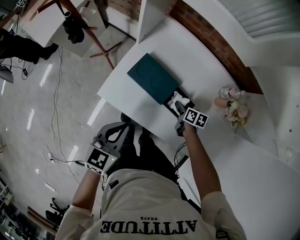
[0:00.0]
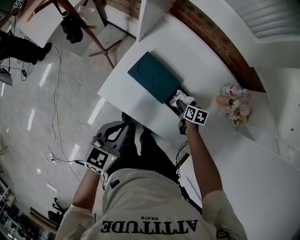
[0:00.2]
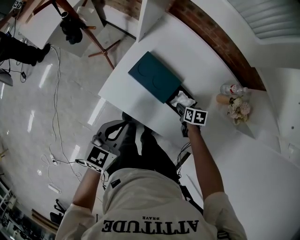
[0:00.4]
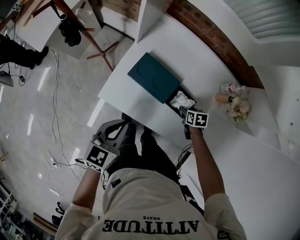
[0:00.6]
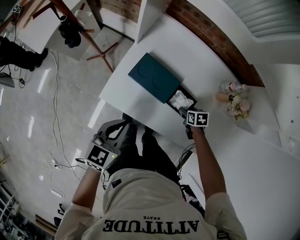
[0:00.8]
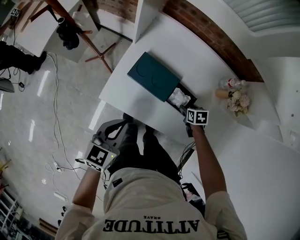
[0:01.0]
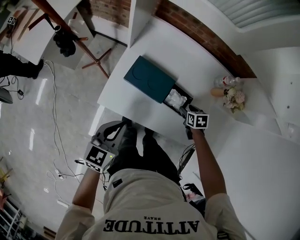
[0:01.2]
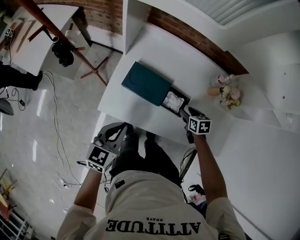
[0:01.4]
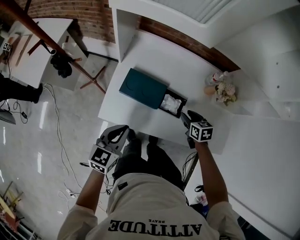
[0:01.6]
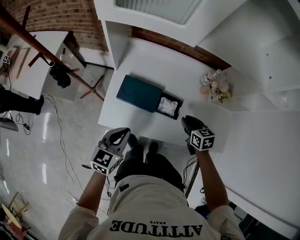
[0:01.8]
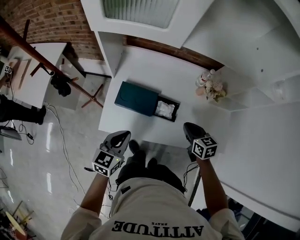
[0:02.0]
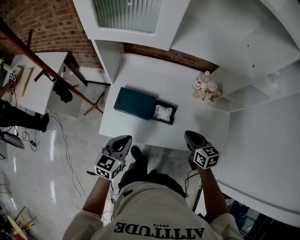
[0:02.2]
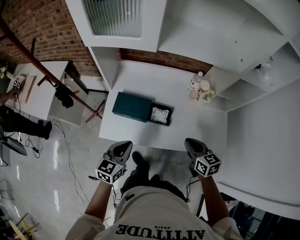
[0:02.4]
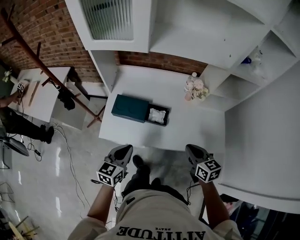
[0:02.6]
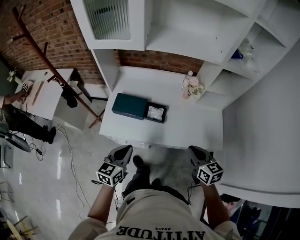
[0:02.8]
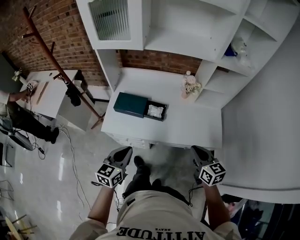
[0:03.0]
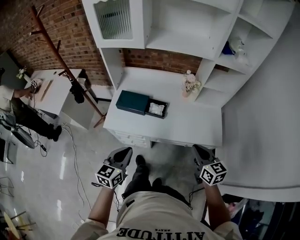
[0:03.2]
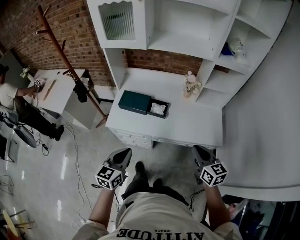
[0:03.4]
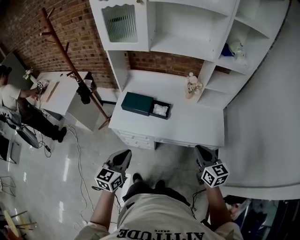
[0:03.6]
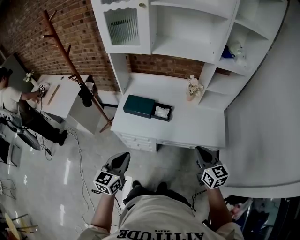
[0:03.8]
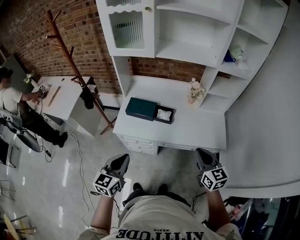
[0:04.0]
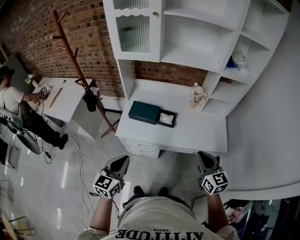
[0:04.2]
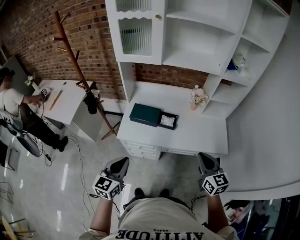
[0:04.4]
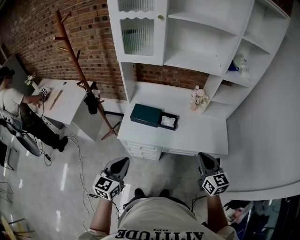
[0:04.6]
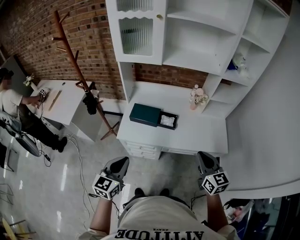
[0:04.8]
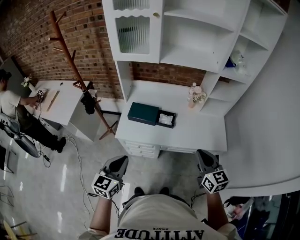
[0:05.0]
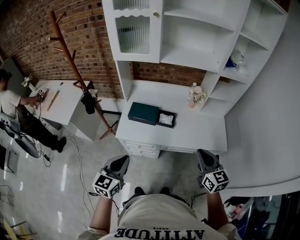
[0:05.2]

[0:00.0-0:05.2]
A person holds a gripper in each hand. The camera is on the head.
0.0 to 1.8 s: The right gripper travels upward and backward by approximately 20 cm, rotates some 20 degrees, and opens and closes again.
1.8 to 3.4 s: The left gripper is displaced backward and to the right by some 25 cm; the right gripper moves backward, upward and to the right, some 35 cm, and rotates about 30 degrees.
3.4 to 5.2 s: The grippers both shift to the left and upward by roughly 10 cm.

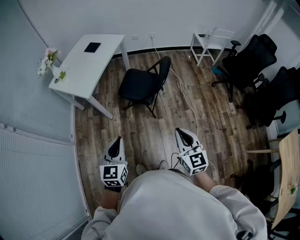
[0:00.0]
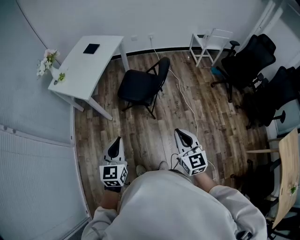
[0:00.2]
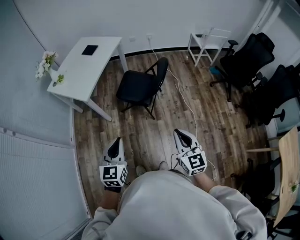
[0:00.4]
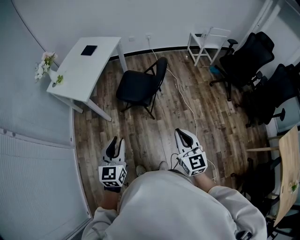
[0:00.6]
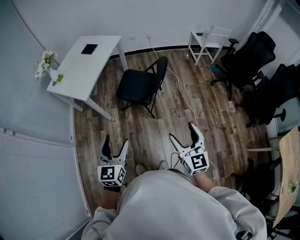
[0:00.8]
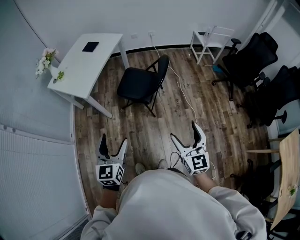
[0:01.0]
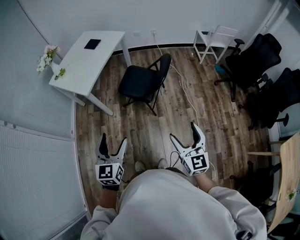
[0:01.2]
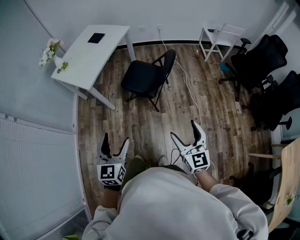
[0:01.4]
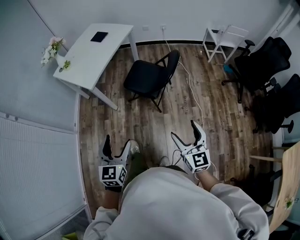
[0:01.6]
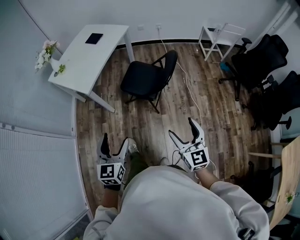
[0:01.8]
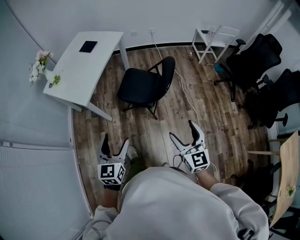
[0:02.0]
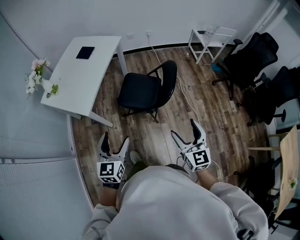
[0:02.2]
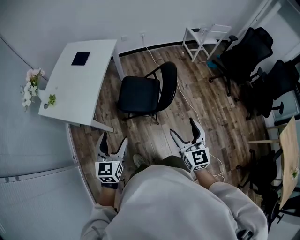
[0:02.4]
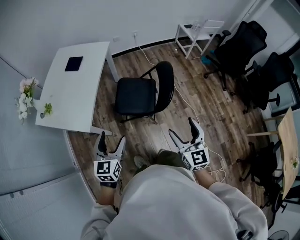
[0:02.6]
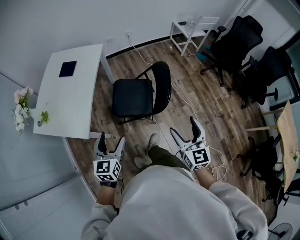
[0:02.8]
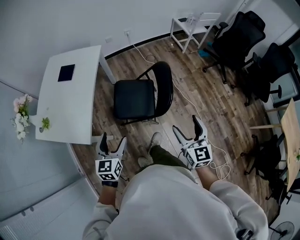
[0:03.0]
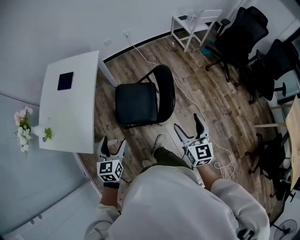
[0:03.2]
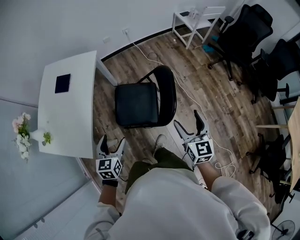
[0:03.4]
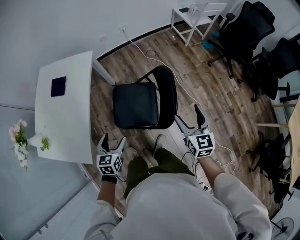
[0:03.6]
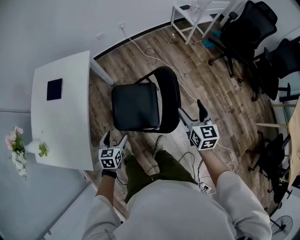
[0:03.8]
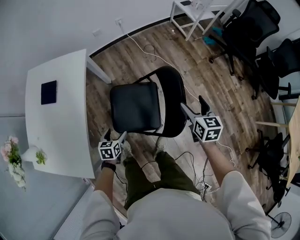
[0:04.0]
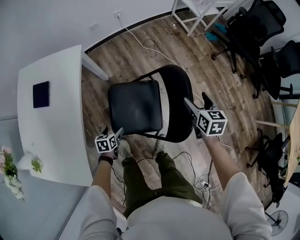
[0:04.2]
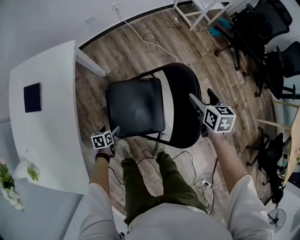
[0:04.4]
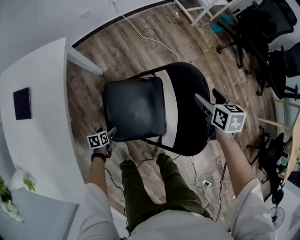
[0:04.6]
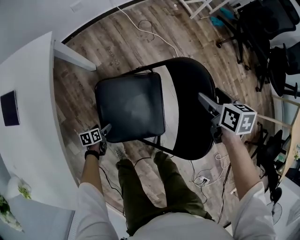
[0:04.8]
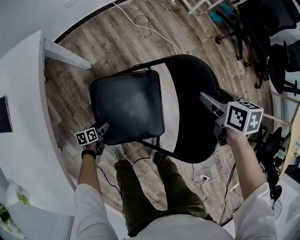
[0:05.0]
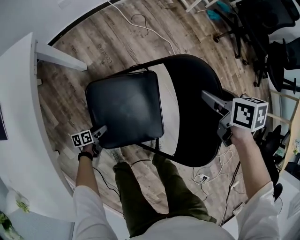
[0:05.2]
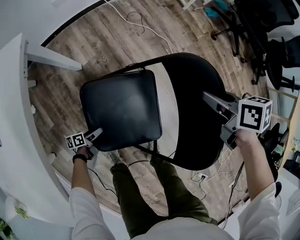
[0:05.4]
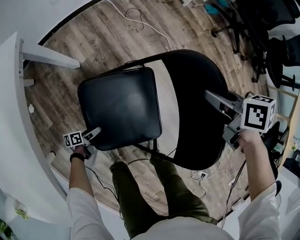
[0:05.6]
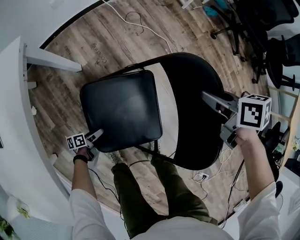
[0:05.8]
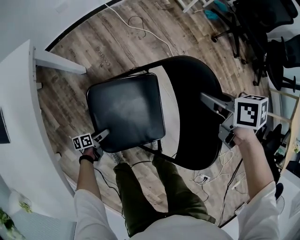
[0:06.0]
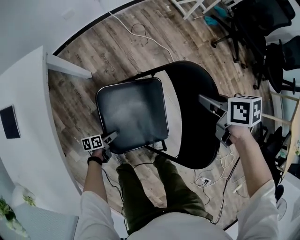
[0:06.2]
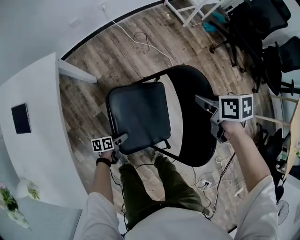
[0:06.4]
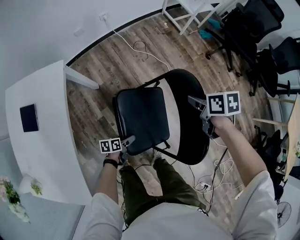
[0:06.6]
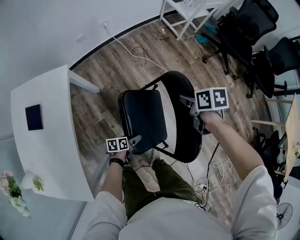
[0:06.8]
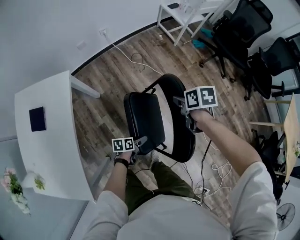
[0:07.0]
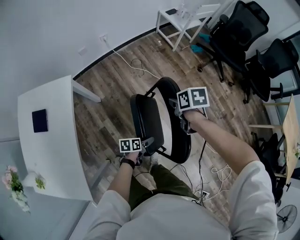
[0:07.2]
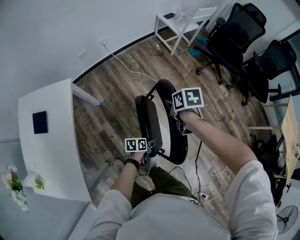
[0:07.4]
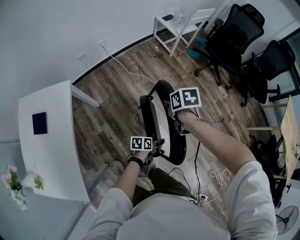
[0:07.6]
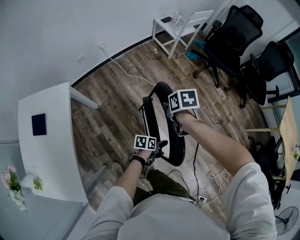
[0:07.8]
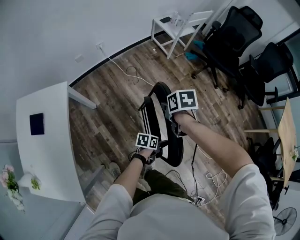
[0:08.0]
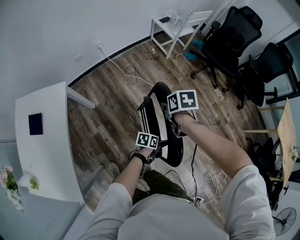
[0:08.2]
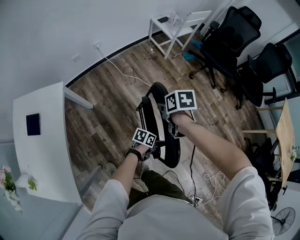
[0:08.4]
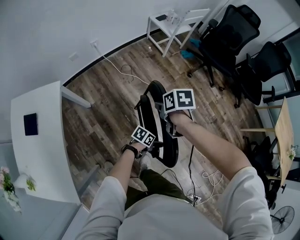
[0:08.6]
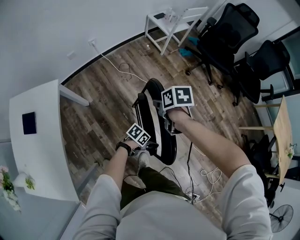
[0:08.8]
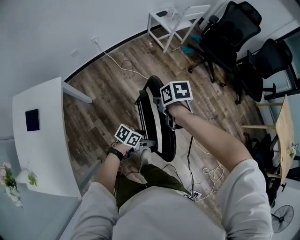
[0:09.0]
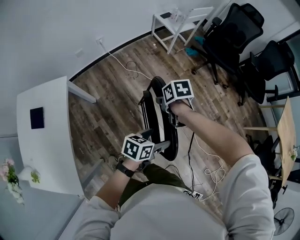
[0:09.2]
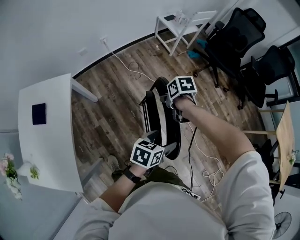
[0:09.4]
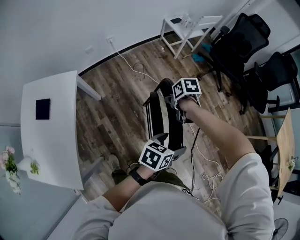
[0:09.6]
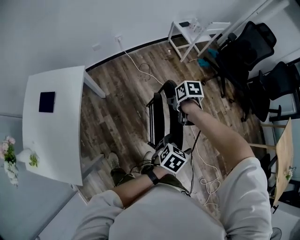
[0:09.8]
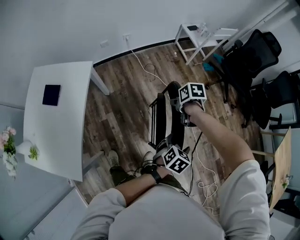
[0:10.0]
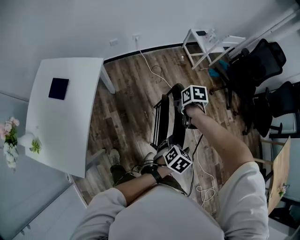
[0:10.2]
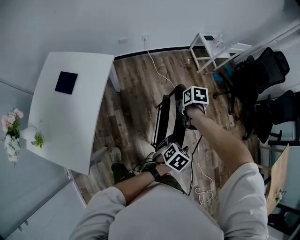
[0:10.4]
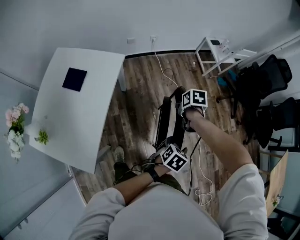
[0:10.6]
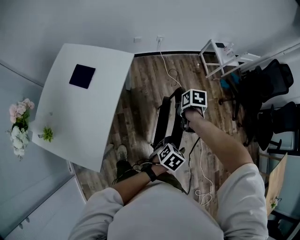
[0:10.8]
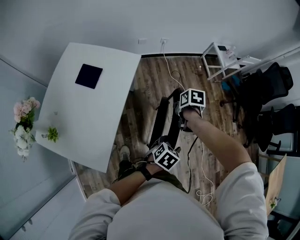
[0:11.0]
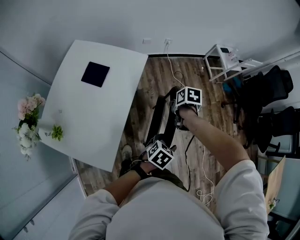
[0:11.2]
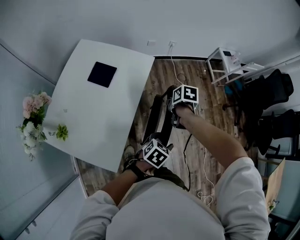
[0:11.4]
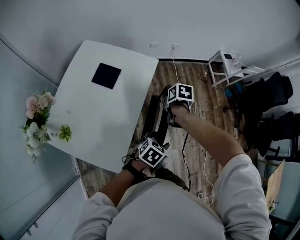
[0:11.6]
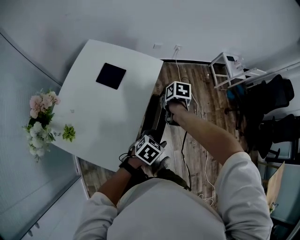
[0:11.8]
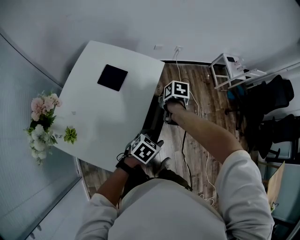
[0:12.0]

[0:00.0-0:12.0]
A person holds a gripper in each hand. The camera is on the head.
0.0 to 1.6 s: The left gripper opens its fingers, while the right gripper ends up approximately 5 cm from where it was, and opens.
1.6 to 3.0 s: Both grippers travel together forward, approximately 30 cm. The left gripper swivels roughly 20 degrees. The right gripper turns by roughly 30 degrees.
3.0 to 4.4 s: The left gripper is displaced downward and forward by about 60 cm, and tilts its fingers approximately 40 degrees downward. The right gripper moves forward and downward, roughly 50 cm, and tilts its fingers some 30 degrees downward.
4.4 to 6.0 s: The left gripper shifts about 15 cm downward, and rotates some 30 degrees. Meanwhile the right gripper is displaced downward by roughly 5 cm, turns by roughly 30 degrees, and closes its fingers.
6.0 to 7.6 s: The right gripper heads upward, covering approximately 15 cm, while the left gripper travels to the right and upward by approximately 50 cm, and turns by roughly 20 degrees.
7.6 to 9.0 s: The left gripper heads upward, covering some 5 cm, and swivels roughly 30 degrees.
9.0 to 10.4 s: The left gripper is displaced upward by roughly 15 cm, and rotates some 40 degrees, while the right gripper ends up approximately 15 cm from where it was.
10.4 to 12.0 s: The two grippers travel together, to the left, roughly 40 cm.

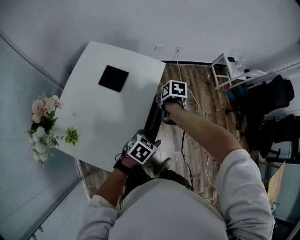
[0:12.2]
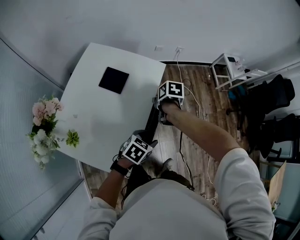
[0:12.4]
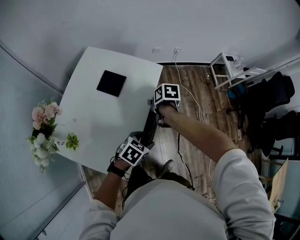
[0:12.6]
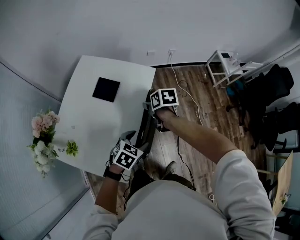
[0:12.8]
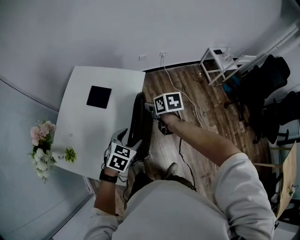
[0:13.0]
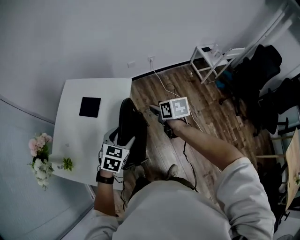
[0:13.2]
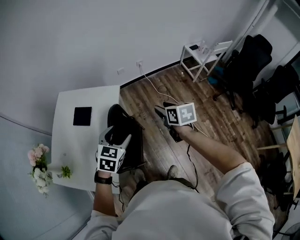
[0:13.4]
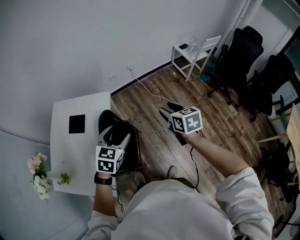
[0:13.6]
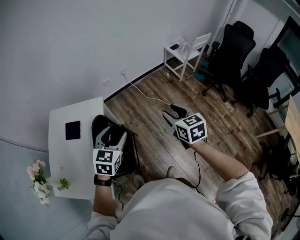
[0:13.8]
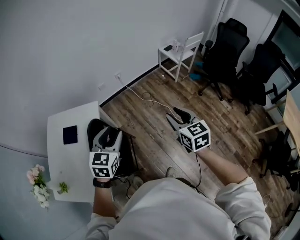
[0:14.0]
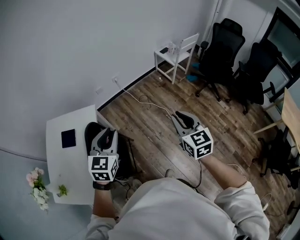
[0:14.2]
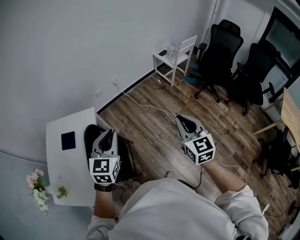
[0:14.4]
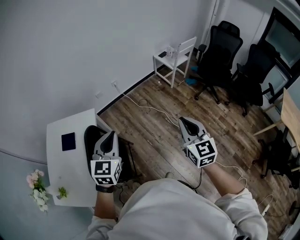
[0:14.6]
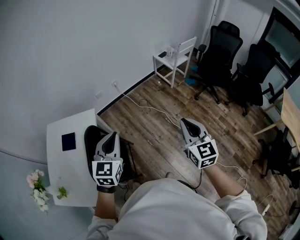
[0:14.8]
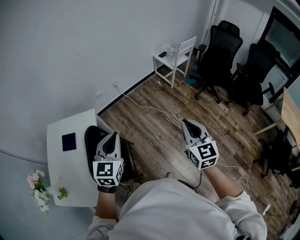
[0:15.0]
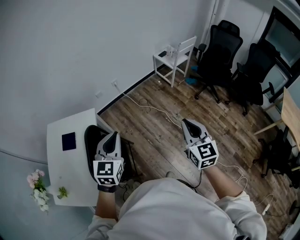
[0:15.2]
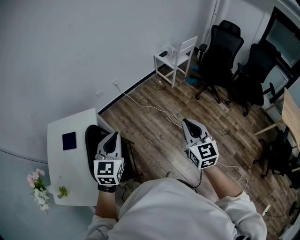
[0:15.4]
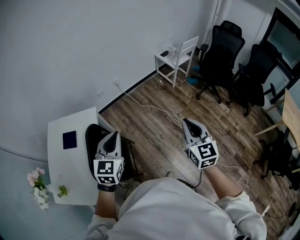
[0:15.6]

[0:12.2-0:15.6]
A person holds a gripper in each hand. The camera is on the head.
12.2 to 13.8 s: The left gripper shifts roughly 25 cm upward and to the right, and rotates about 30 degrees; the right gripper moves to the right and upward, some 50 cm, and angles its fingers upward, by roughly 40 degrees.
13.8 to 15.6 s: The left gripper travels to the right and upward by some 10 cm, and closes up. Meanwhile the right gripper shifts roughly 15 cm to the right, backward and upward, rotates roughly 30 degrees, and closes up.

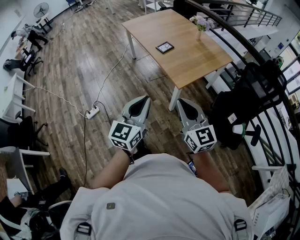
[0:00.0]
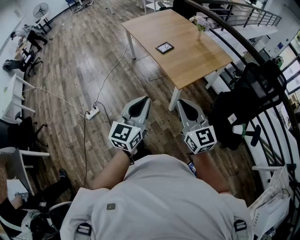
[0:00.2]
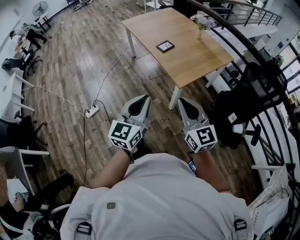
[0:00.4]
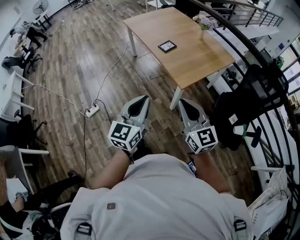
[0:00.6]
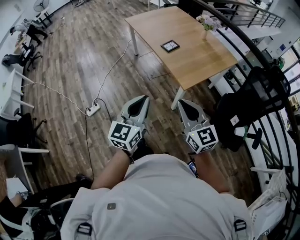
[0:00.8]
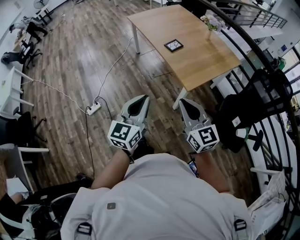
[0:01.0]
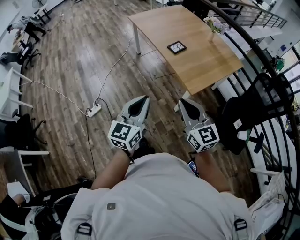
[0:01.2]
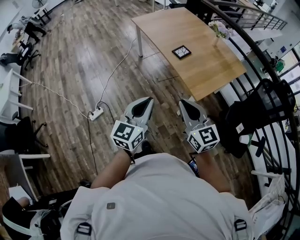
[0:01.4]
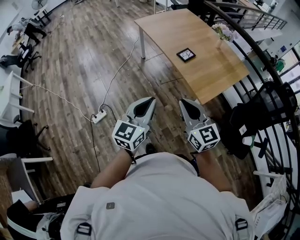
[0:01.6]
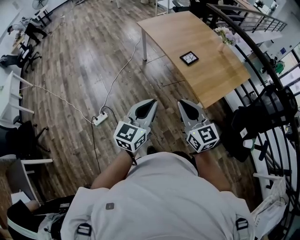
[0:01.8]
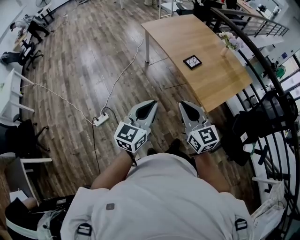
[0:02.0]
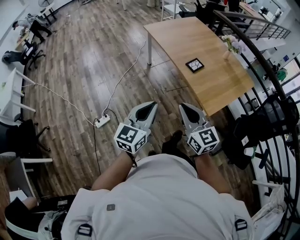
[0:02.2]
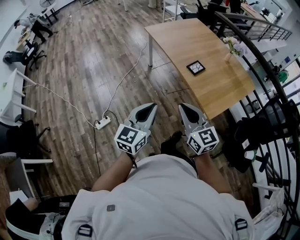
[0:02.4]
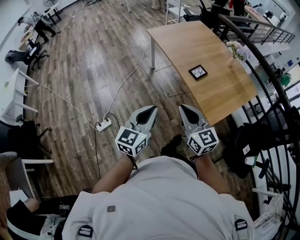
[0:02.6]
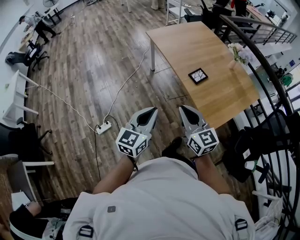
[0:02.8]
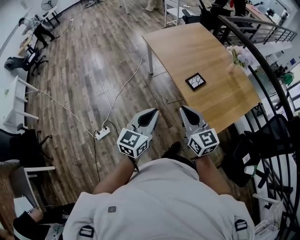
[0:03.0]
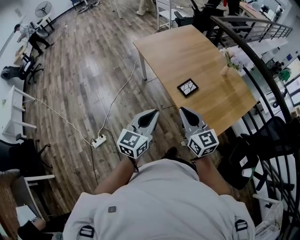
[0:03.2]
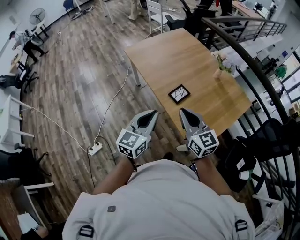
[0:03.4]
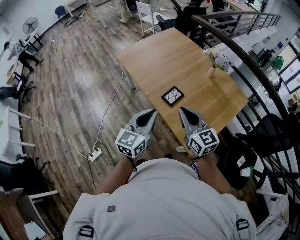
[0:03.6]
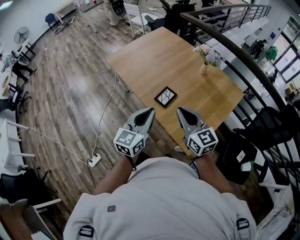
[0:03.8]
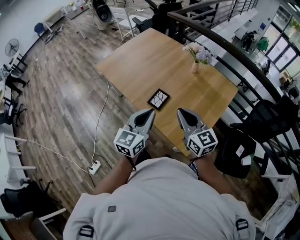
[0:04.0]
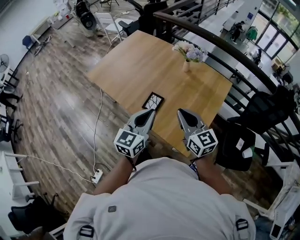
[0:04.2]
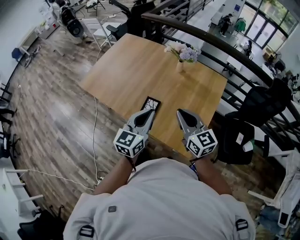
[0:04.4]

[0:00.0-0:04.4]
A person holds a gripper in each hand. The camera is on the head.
0.0 to 1.4 s: The two grippers go some 20 cm to the left and forward.
1.4 to 3.0 s: The two grippers go approximately 25 cm forward.
3.0 to 4.4 s: The right gripper shifts by roughly 30 cm, and turns by approximately 30 degrees. The left gripper changes place by roughly 35 cm, and changes its angle by approximately 30 degrees.
